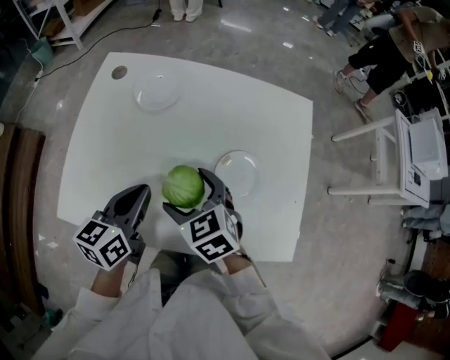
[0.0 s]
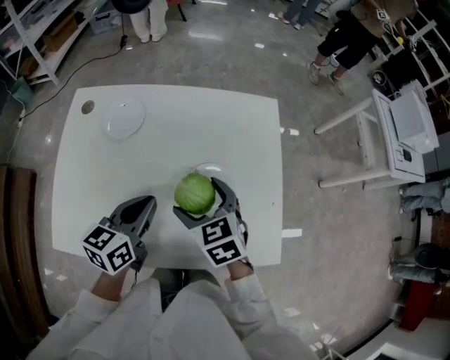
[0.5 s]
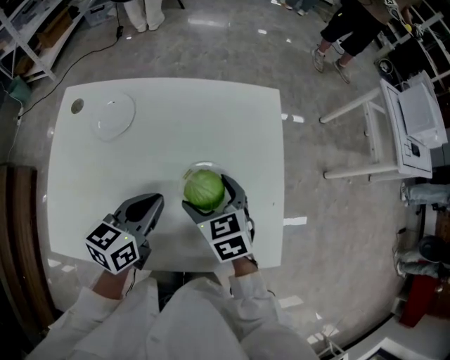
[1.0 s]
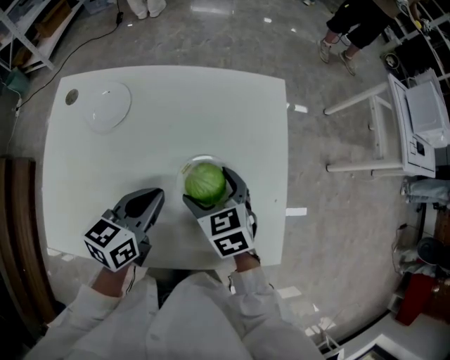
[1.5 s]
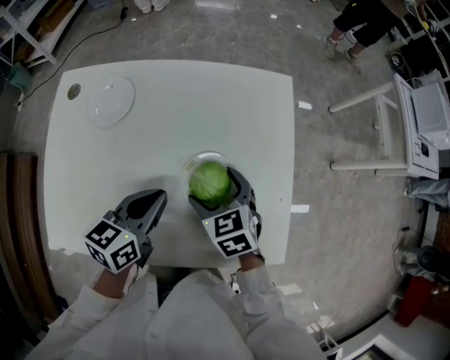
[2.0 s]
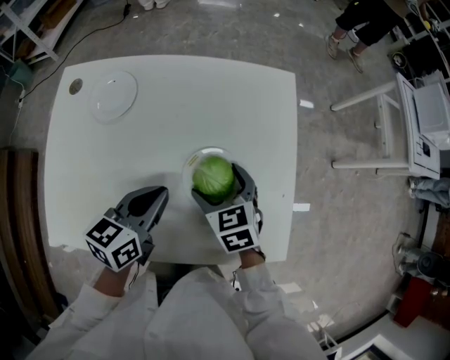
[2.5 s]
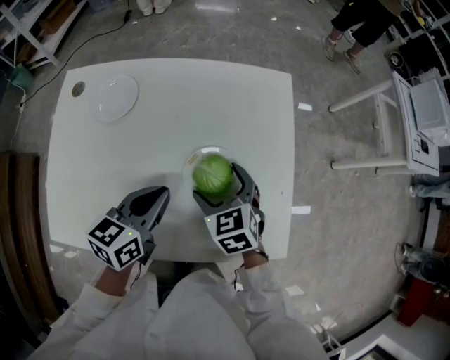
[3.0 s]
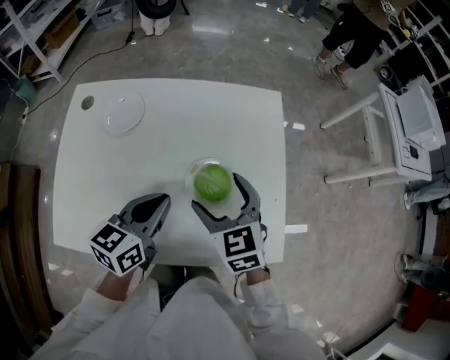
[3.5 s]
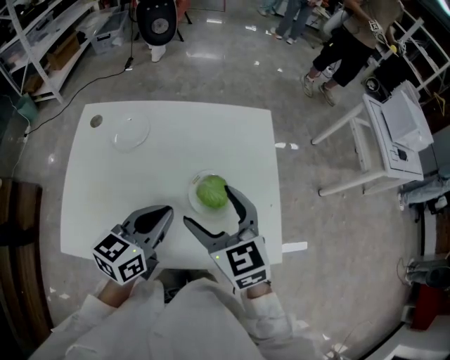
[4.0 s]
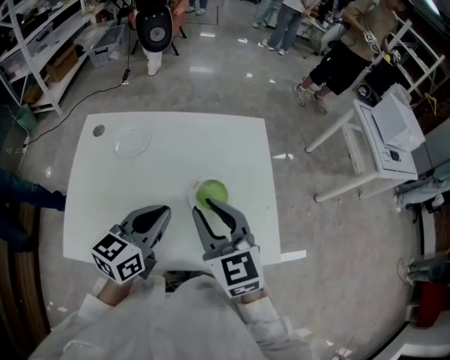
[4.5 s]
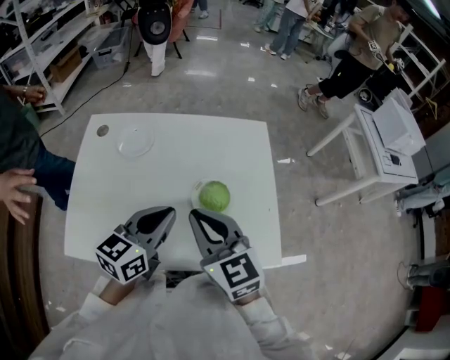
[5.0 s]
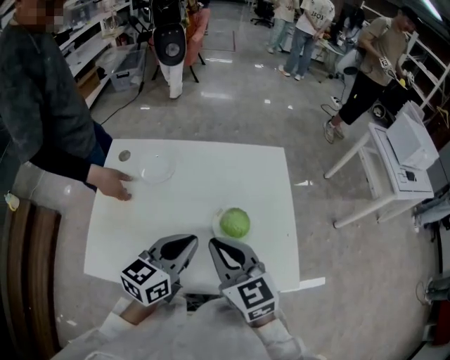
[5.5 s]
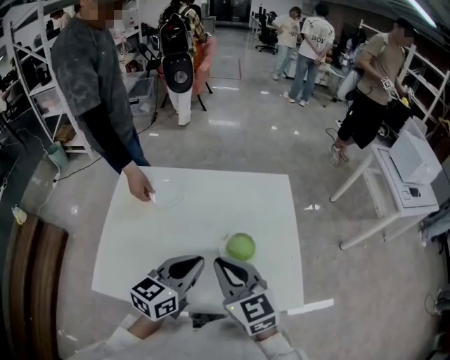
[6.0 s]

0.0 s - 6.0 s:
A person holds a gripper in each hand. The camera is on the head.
0.0 s - 2.0 s: Both grippers travel together to the right and forward, some 15 cm.
2.0 s - 4.0 s: The right gripper shifts about 20 cm upward, and changes its angle by approximately 20 degrees. The left gripper goes roughly 10 cm upward and backward.
4.0 s - 6.0 s: The right gripper moves some 5 cm, and closes up.

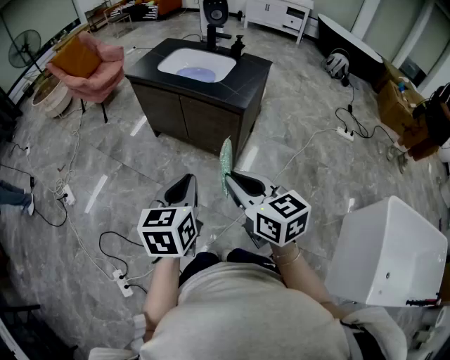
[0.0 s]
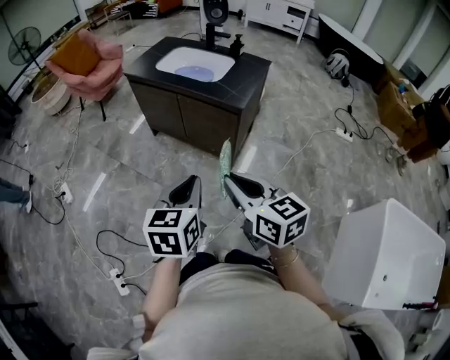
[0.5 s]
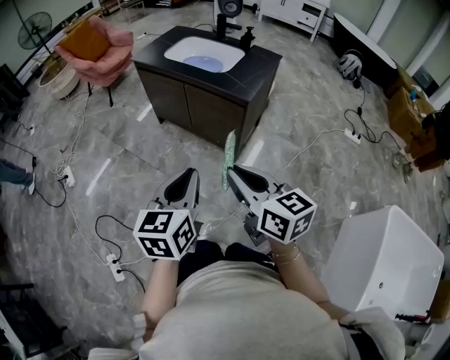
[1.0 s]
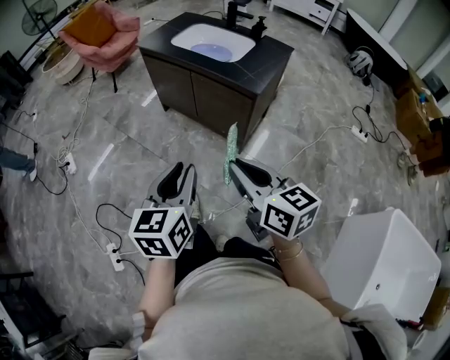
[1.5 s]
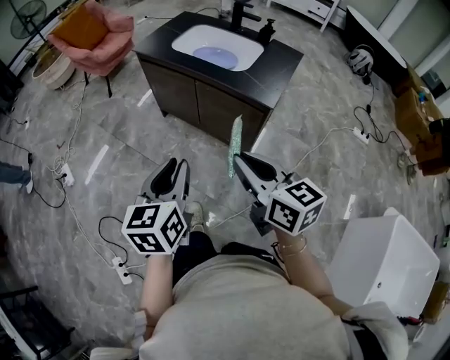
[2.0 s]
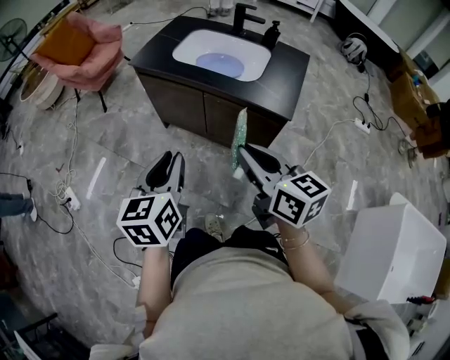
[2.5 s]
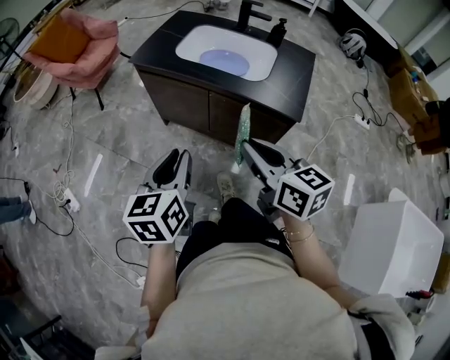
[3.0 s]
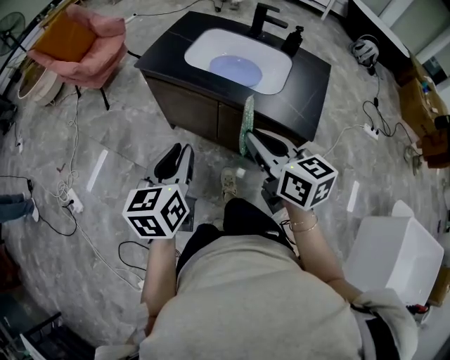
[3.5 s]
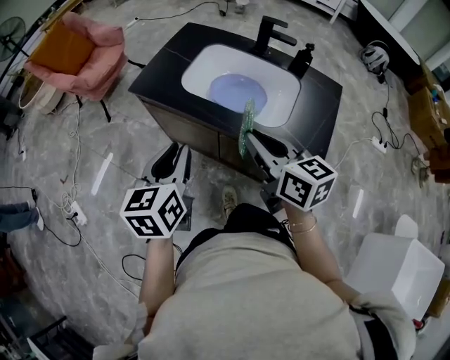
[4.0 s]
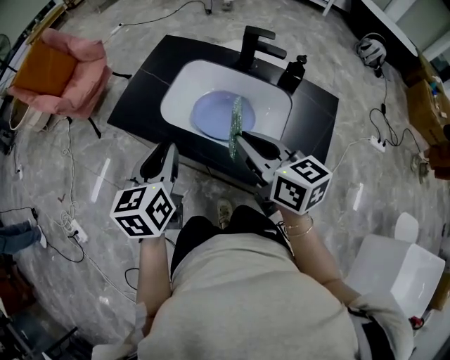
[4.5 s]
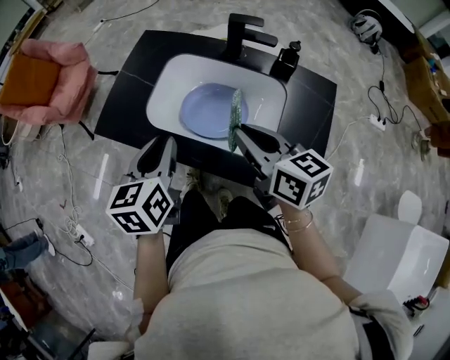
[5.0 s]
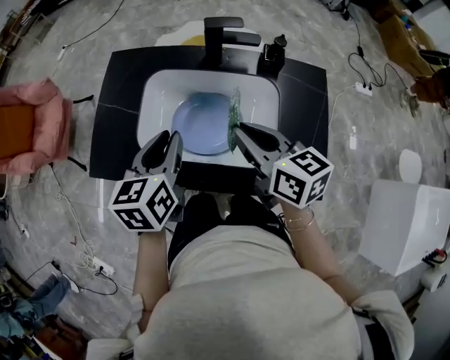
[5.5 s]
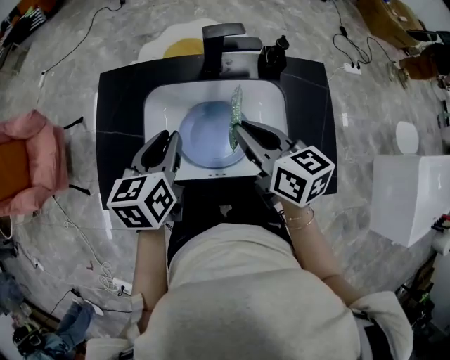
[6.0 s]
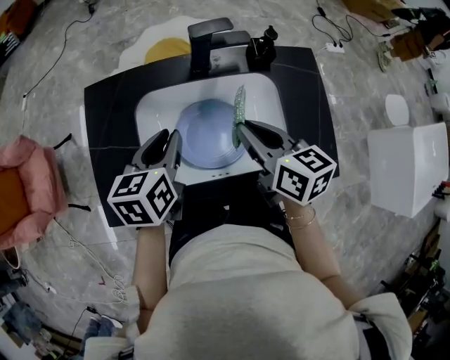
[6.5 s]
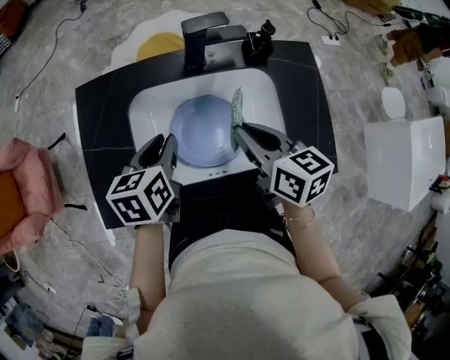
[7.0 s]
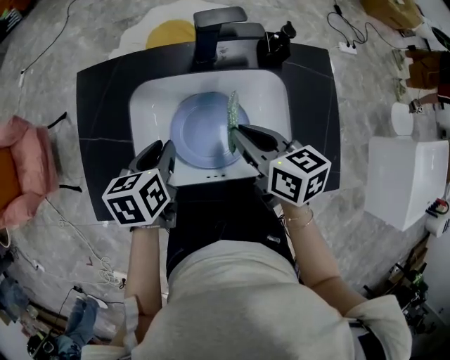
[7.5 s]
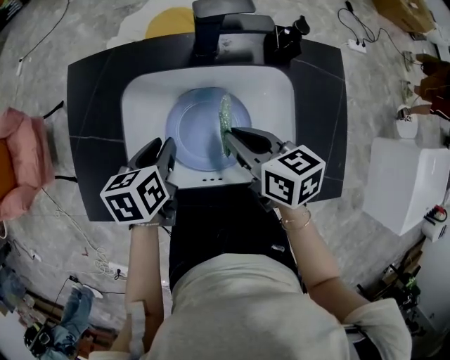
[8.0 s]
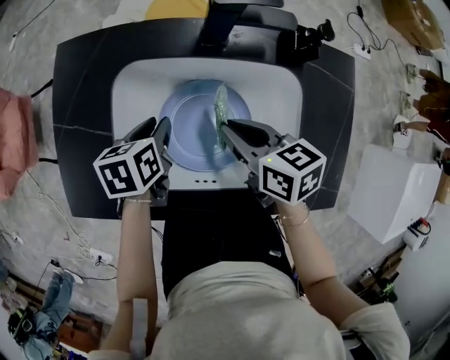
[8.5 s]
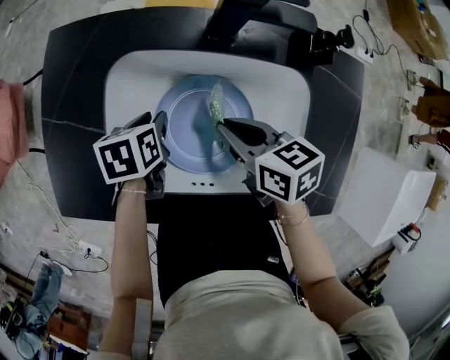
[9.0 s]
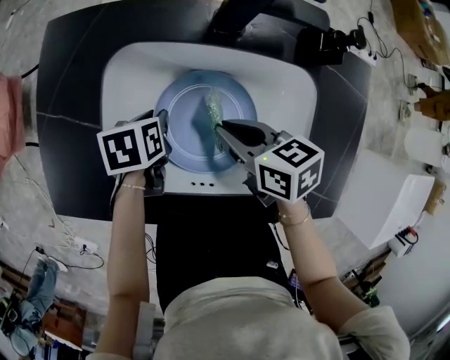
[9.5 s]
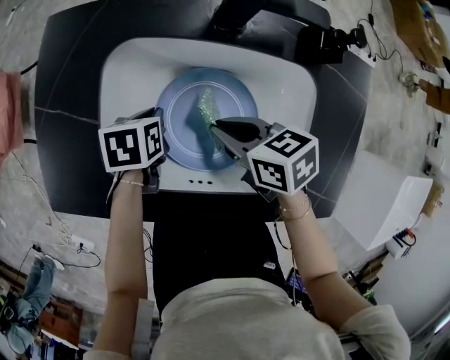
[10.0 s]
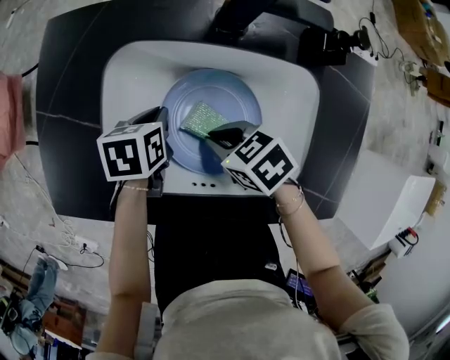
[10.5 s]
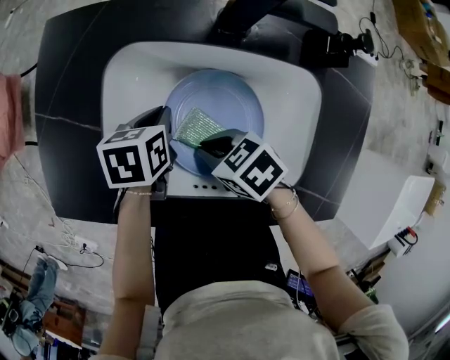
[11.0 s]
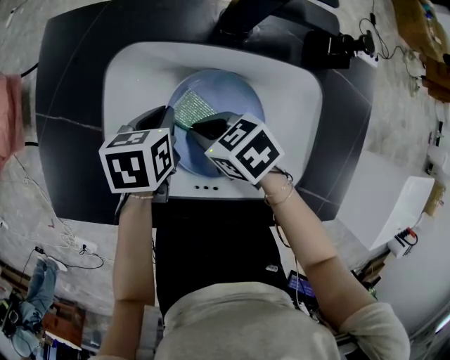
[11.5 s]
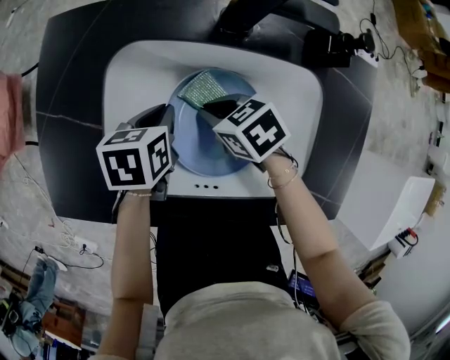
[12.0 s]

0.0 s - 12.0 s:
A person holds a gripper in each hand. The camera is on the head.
0.0 s - 2.0 s: The left gripper is displaced forward and to the left by approximately 15 cm; the right gripper is displaced forward by roughly 15 cm.
2.0 s - 4.0 s: Both grippers move forward, about 40 cm.
4.0 s - 6.0 s: The right gripper changes place by approximately 25 cm, and swivels about 30 degrees. The left gripper ends up about 35 cm from where it was, and changes its angle by approximately 30 degrees.
6.0 s - 8.0 s: The two grippers go approximately 10 cm downward. The left gripper rotates some 20 degrees.
8.0 s - 10.0 s: The right gripper is displaced downward by some 10 cm, and changes its angle by approximately 20 degrees. The left gripper goes some 15 cm downward.
10.0 s - 12.0 s: The right gripper moves downward, approximately 5 cm.

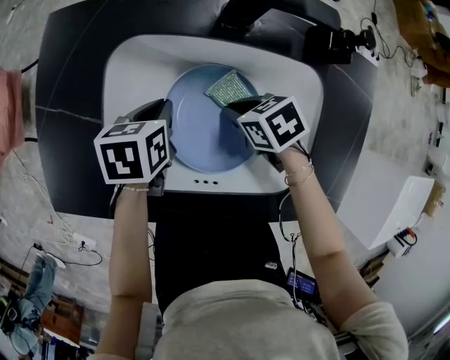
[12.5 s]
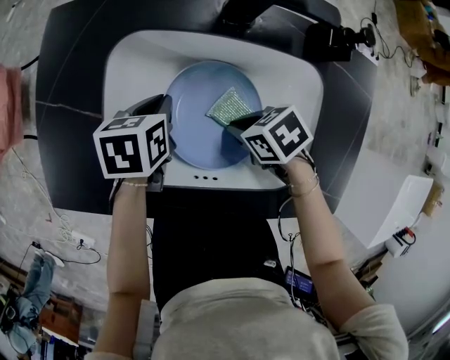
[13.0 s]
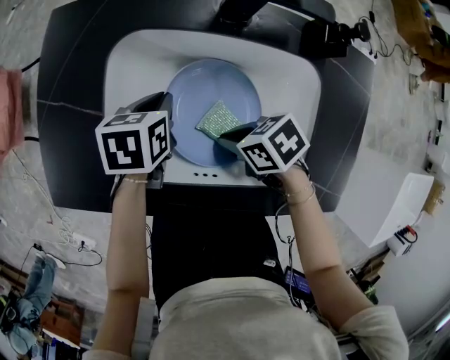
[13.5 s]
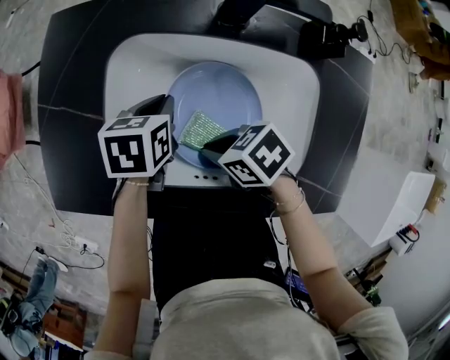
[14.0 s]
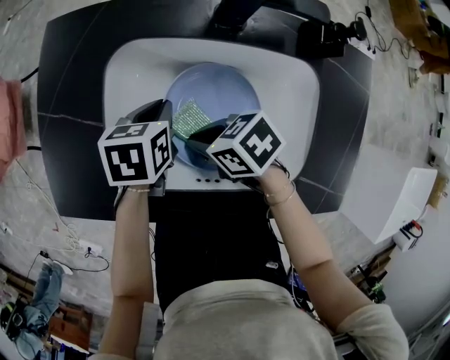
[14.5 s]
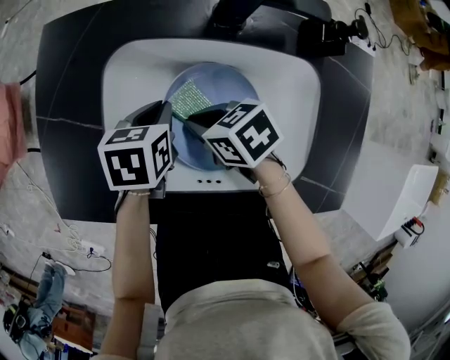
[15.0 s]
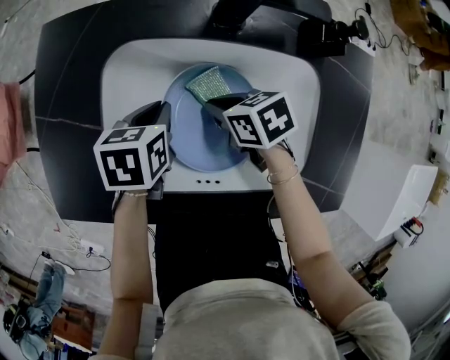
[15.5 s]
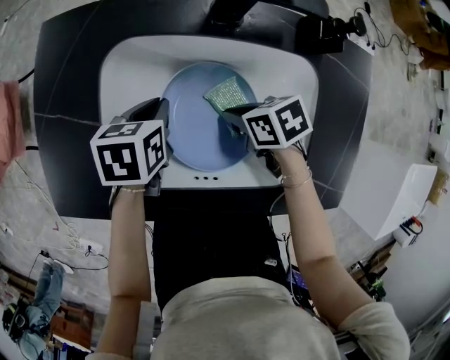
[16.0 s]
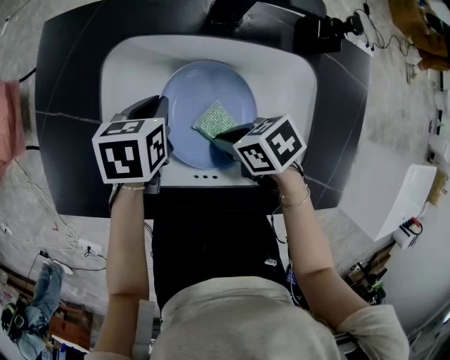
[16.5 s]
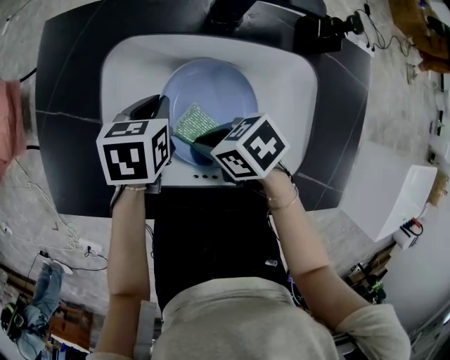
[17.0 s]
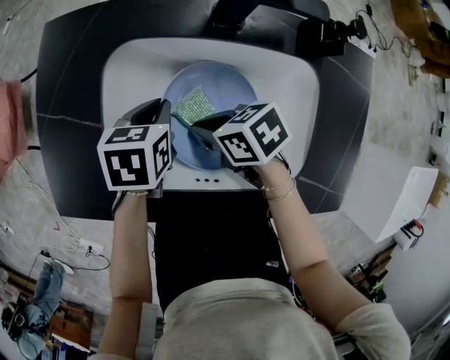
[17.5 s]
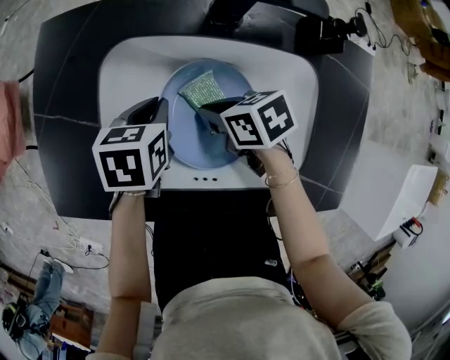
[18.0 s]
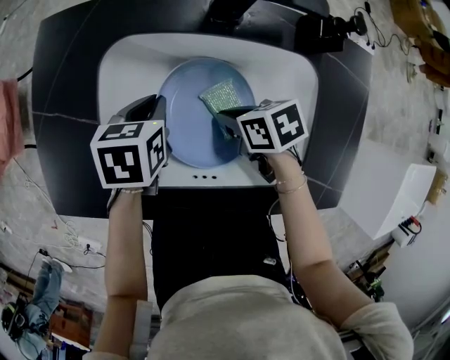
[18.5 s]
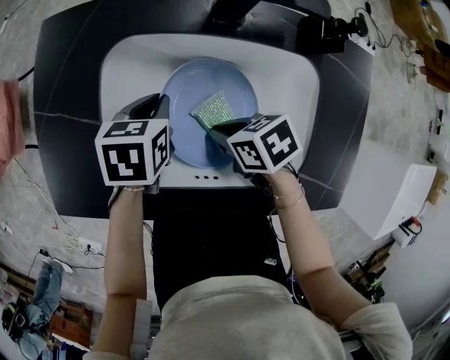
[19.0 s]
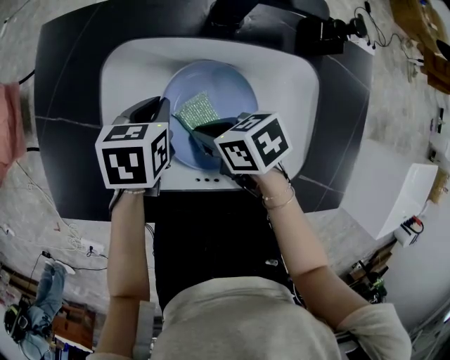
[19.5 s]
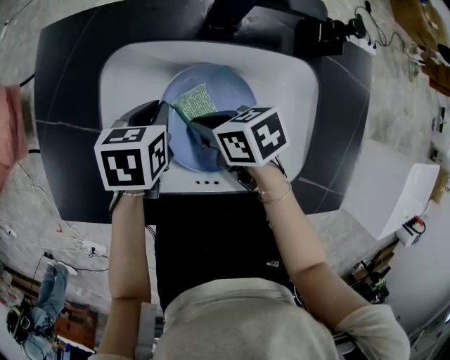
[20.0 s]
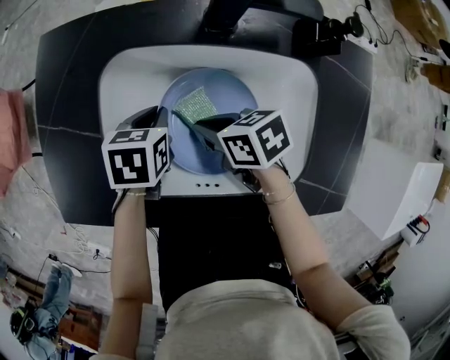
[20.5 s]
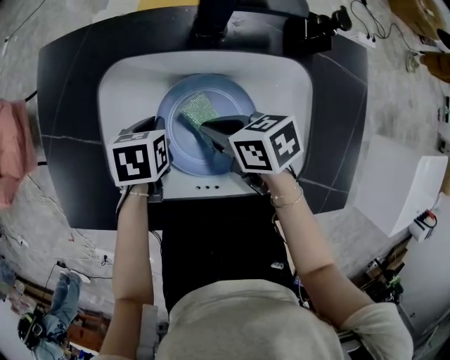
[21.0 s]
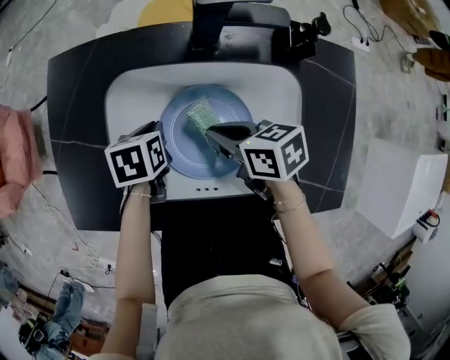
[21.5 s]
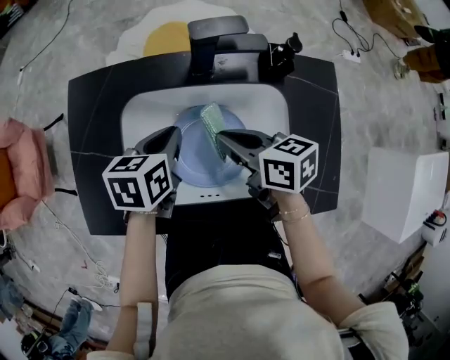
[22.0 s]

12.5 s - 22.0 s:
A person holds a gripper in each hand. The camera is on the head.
12.5 s - 14.5 s: The right gripper shifts by roughly 10 cm.
16.5 s - 18.0 s: The right gripper shifts by some 10 cm.
18.0 s - 20.0 s: The grippers move only a little.
20.0 s - 22.0 s: The right gripper is displaced upward and to the right by approximately 15 cm, and rotates approximately 30 degrees, while the left gripper shifts some 10 cm upward.
